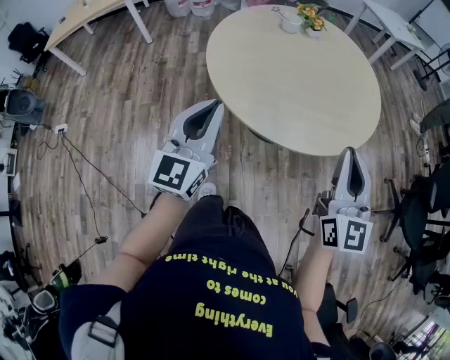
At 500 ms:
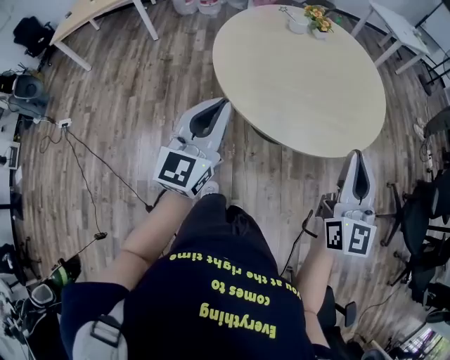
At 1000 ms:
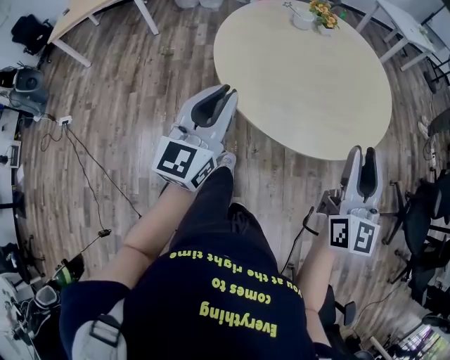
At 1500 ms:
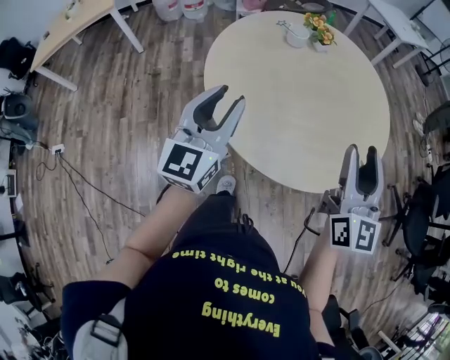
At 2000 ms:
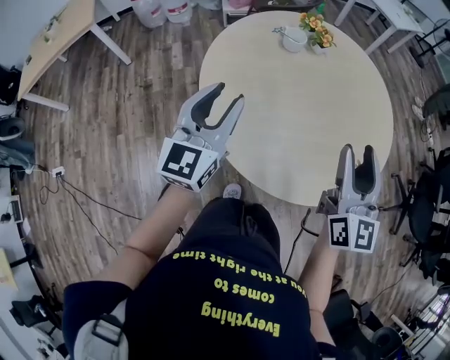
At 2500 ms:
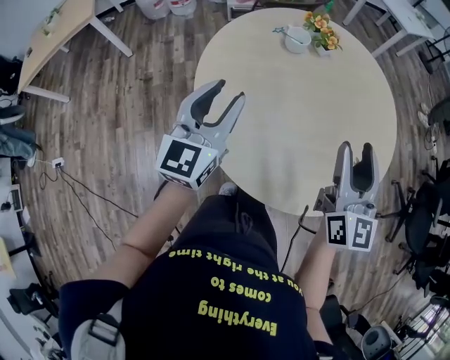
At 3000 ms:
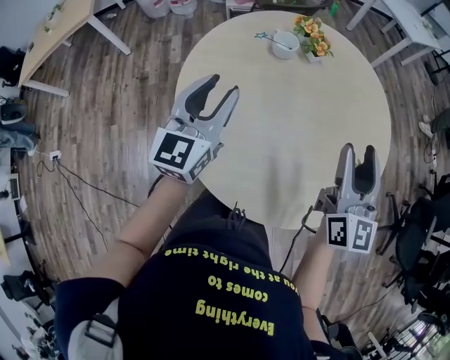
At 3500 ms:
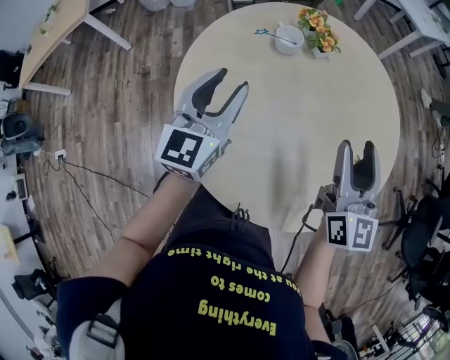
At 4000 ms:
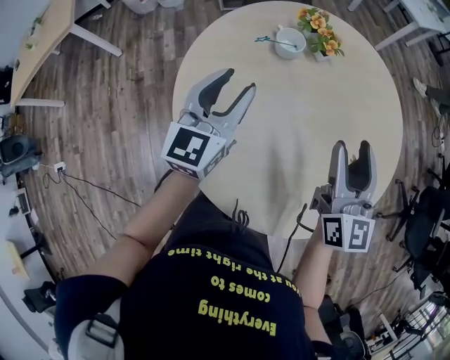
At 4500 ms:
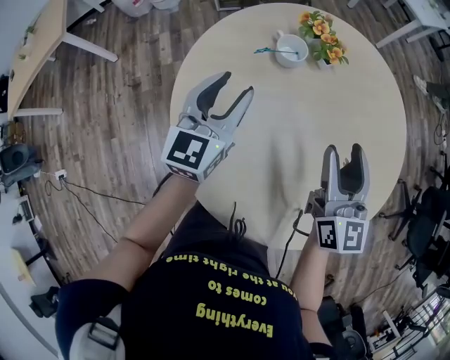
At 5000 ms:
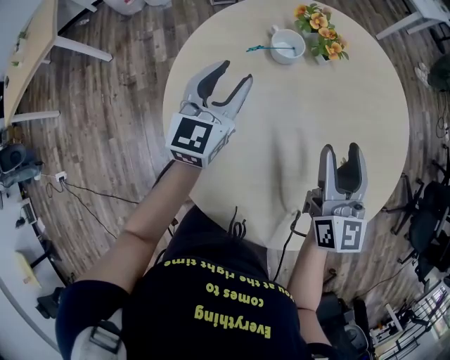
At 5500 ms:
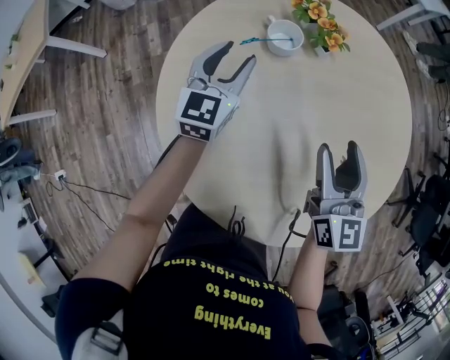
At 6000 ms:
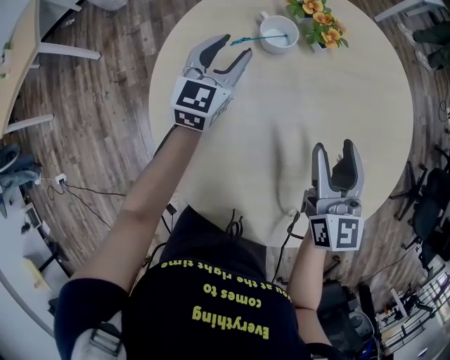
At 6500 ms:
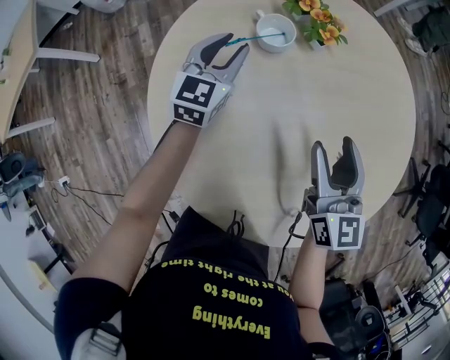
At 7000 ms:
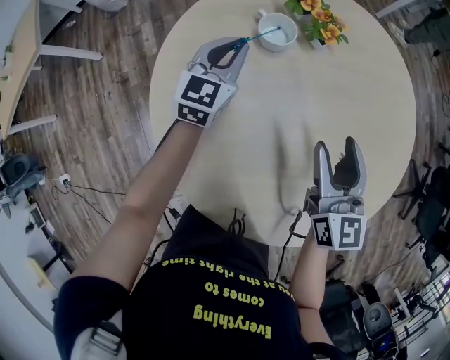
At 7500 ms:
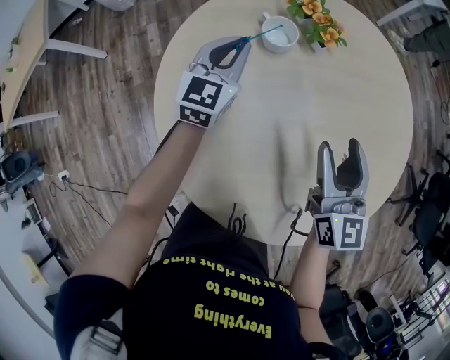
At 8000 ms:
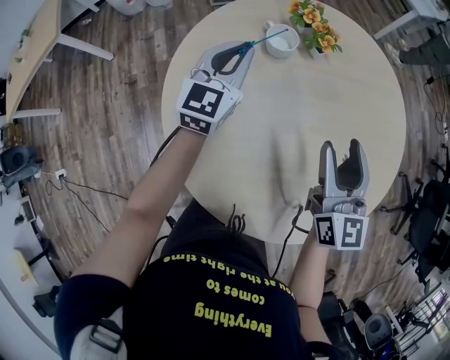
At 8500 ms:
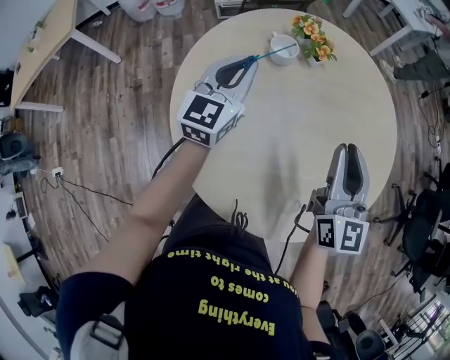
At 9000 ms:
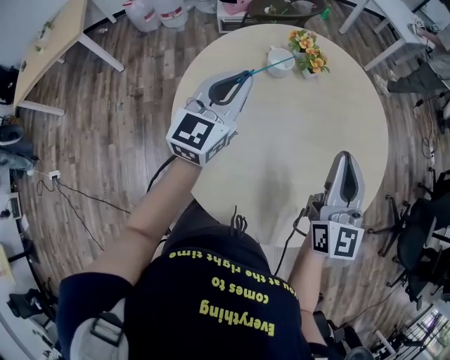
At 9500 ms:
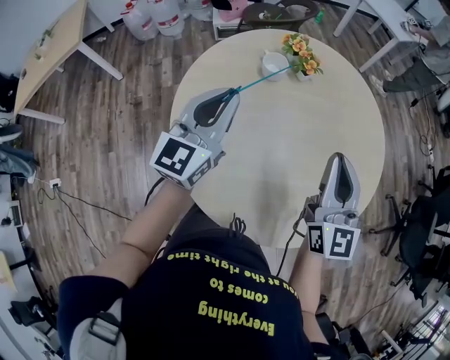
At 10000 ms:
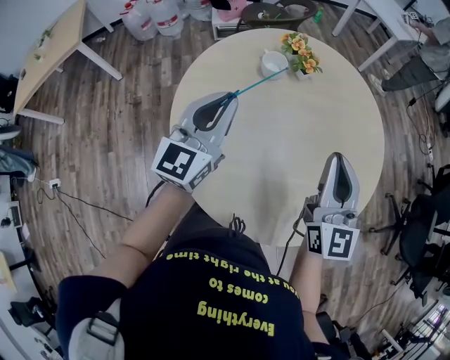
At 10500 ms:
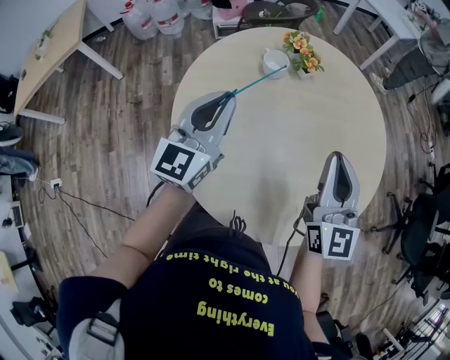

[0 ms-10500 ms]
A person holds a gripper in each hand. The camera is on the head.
0 ms to 2000 ms: Both grippers travel together forward, approximately 25 cm. The right gripper opens up. The left gripper opens.
2000 ms to 4000 ms: The grippers both shift forward by approximately 20 cm.
4000 ms to 6500 ms: The right gripper heads downward and forward, covering approximately 15 cm. The left gripper moves forward and downward, roughly 25 cm.
6500 ms to 8500 ms: Both grippers move upward and backward, about 15 cm. The right gripper closes its fingers, while the left gripper closes its fingers.
8500 ms to 10500 ms: The left gripper moves backward and upward, about 10 cm. Meanwhile the right gripper changes place by about 5 cm.

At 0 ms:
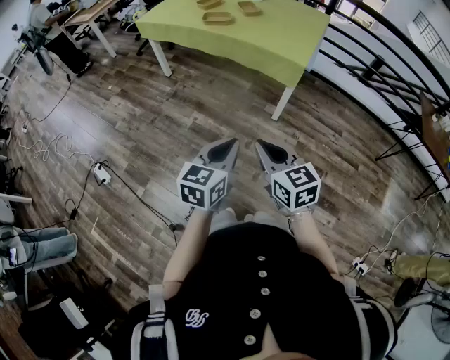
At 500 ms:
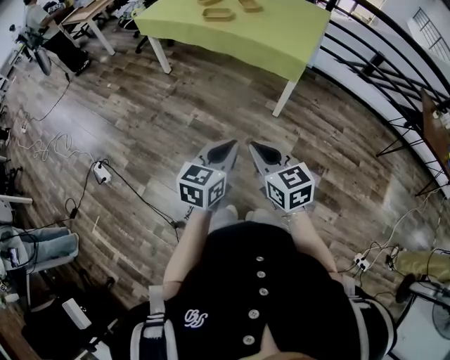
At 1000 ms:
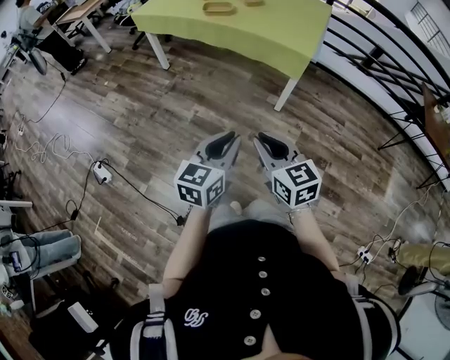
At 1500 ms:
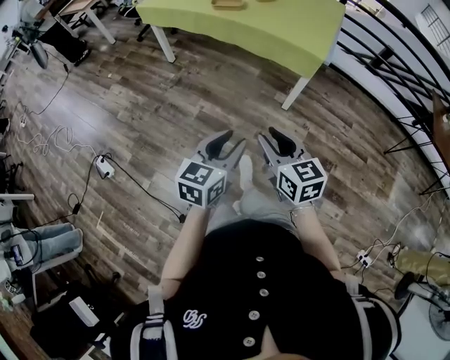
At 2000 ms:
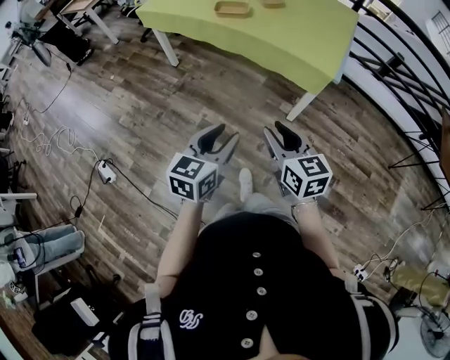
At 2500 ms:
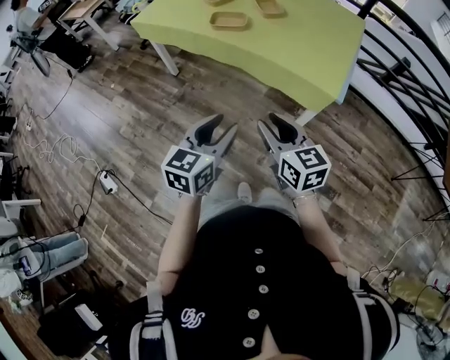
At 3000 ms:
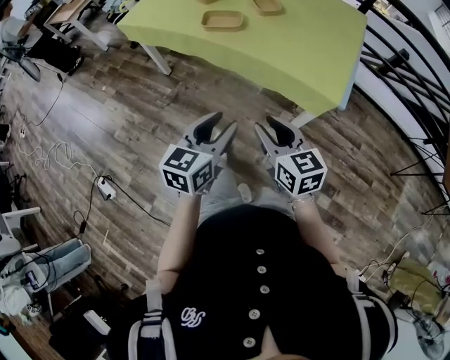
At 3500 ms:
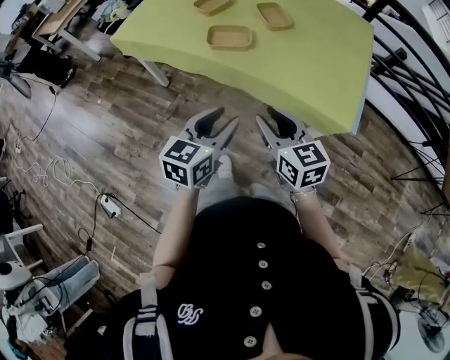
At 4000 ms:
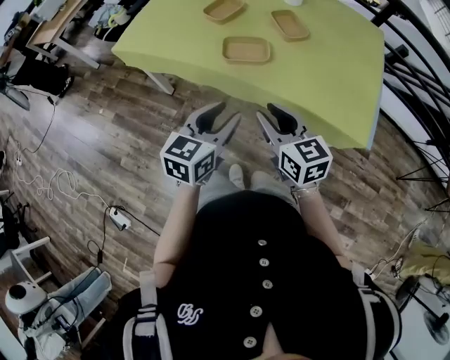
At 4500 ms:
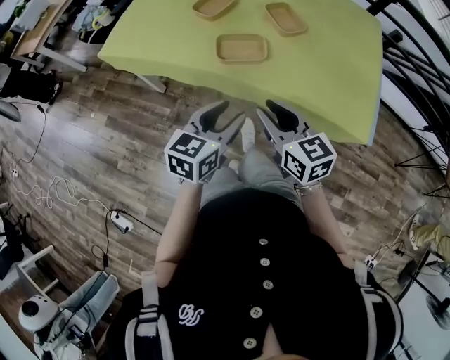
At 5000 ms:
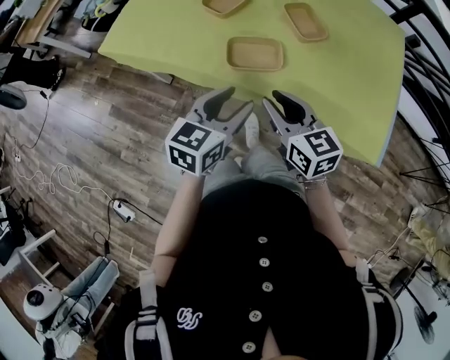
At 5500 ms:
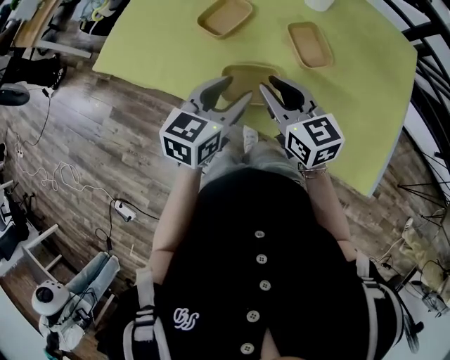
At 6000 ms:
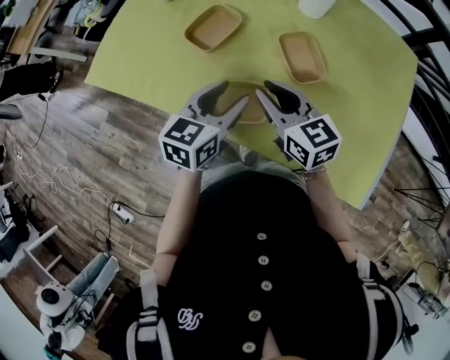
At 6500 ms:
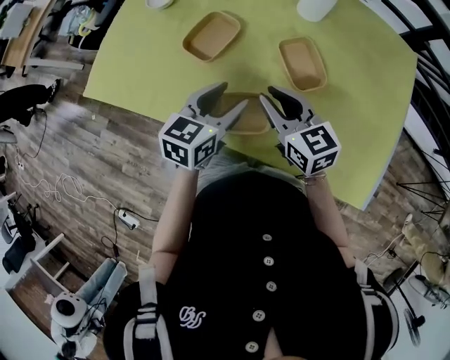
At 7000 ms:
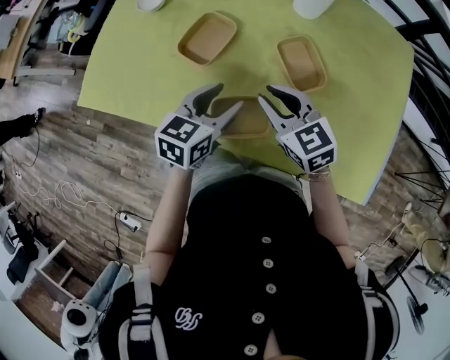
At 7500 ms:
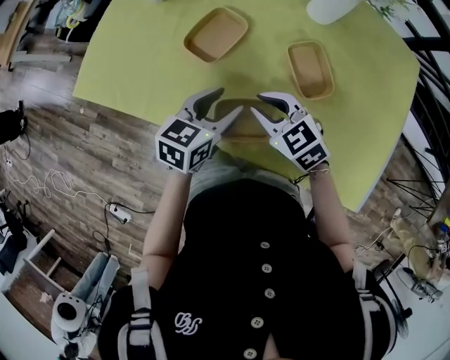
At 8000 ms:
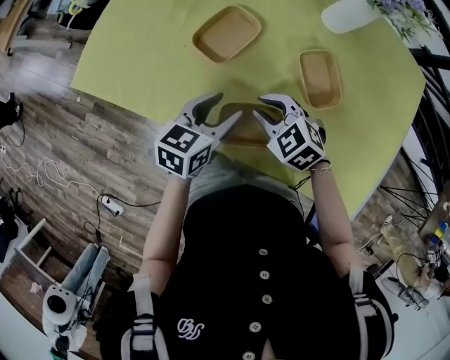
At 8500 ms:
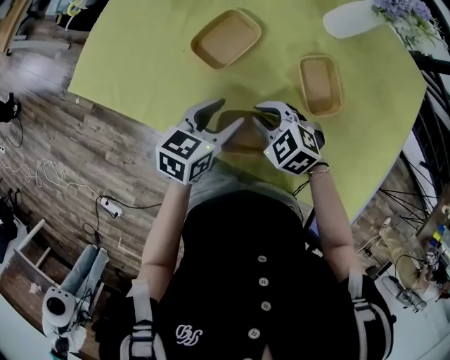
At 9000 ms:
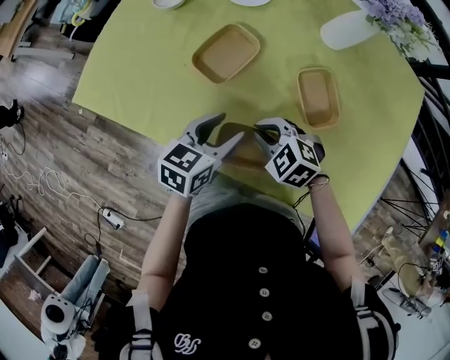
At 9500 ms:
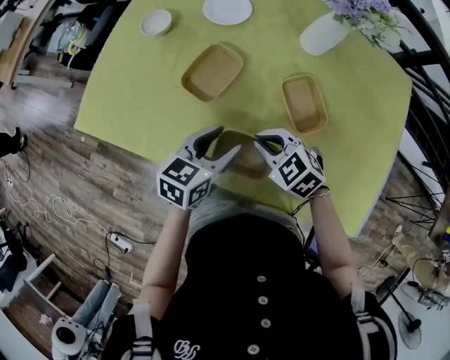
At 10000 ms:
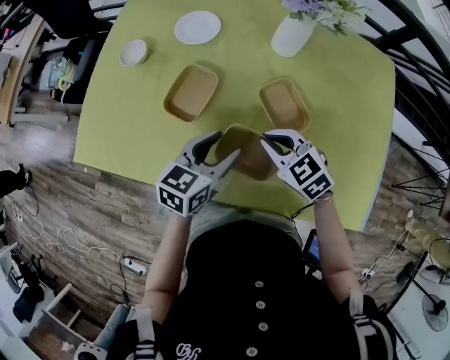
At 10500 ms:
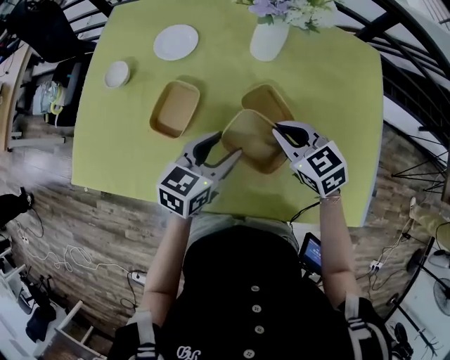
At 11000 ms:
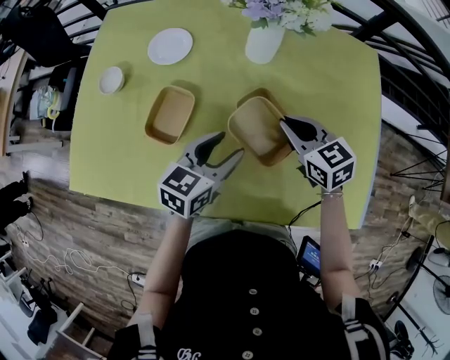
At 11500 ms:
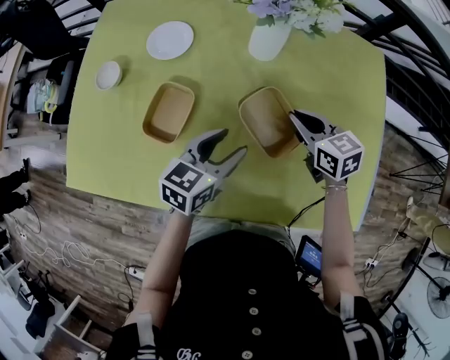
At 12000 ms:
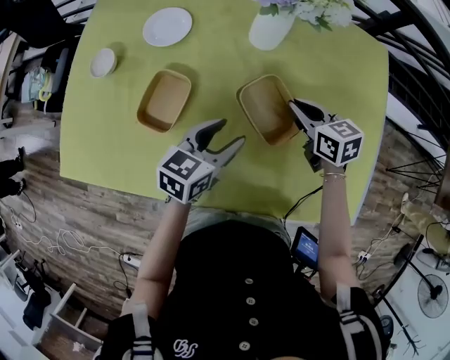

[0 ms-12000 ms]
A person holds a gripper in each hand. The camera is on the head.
0 ms to 2000 ms: The left gripper goes about 20 cm forward and to the left, and opens its fingers. Meanwhile the right gripper heads forward, covering roughly 20 cm, and opens.
2000 ms to 4000 ms: The two grippers go about 40 cm forward.
4000 ms to 6000 ms: Both grippers move forward, about 30 cm.
6000 ms to 8000 ms: The right gripper shifts approximately 10 cm downward and to the left, and points its fingers some 30 degrees further downward, while the left gripper travels downward by about 5 cm.
8000 ms to 10000 ms: The two grippers go roughly 5 cm to the right. The right gripper rotates some 20 degrees.
10000 ms to 12000 ms: The left gripper shifts roughly 10 cm to the right and forward. The right gripper goes approximately 20 cm to the right and forward, and turns by about 40 degrees.

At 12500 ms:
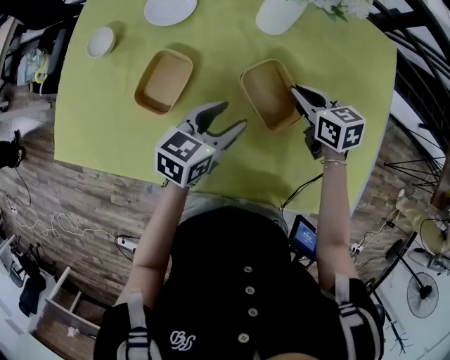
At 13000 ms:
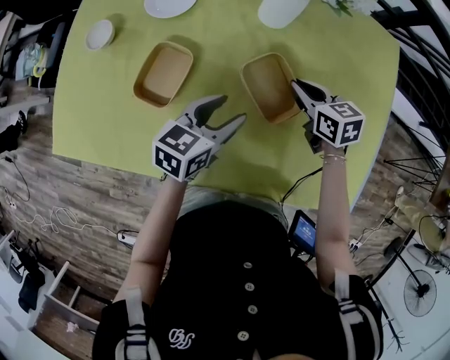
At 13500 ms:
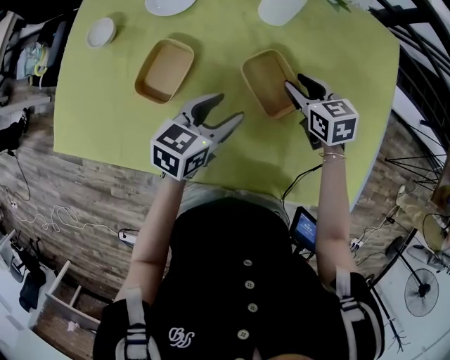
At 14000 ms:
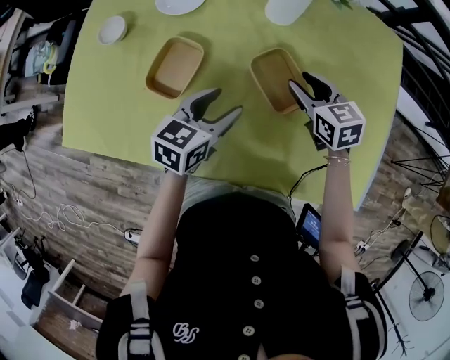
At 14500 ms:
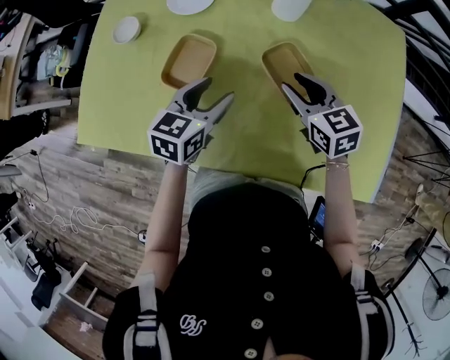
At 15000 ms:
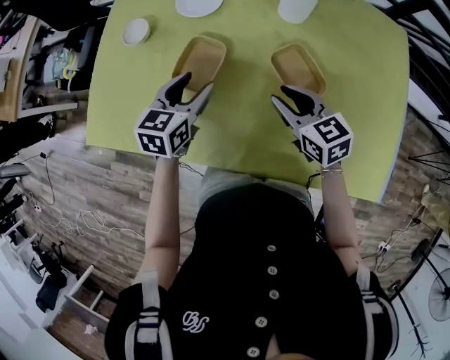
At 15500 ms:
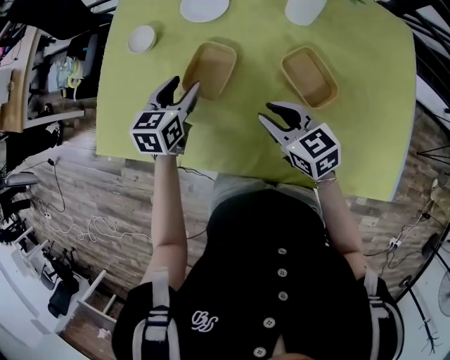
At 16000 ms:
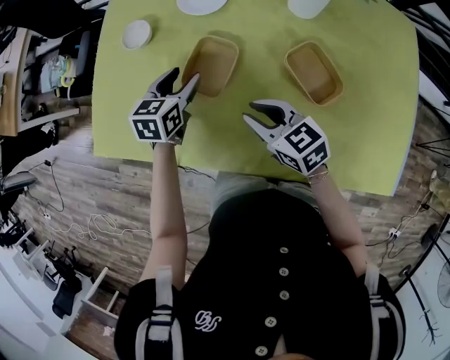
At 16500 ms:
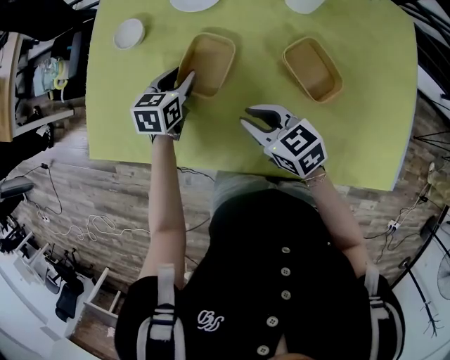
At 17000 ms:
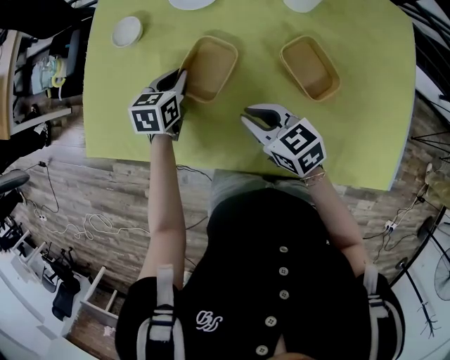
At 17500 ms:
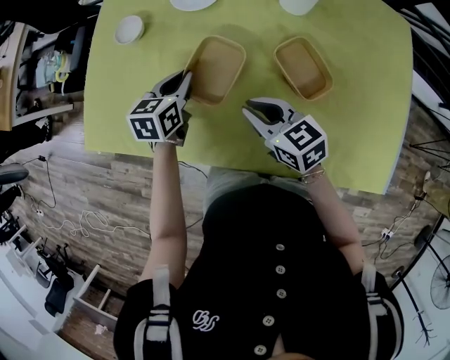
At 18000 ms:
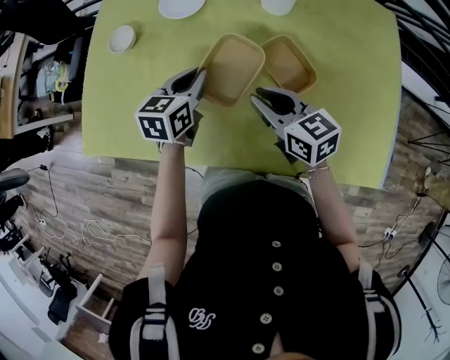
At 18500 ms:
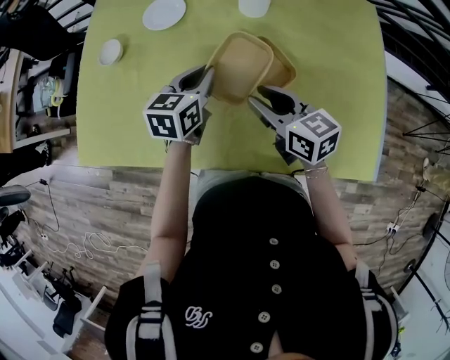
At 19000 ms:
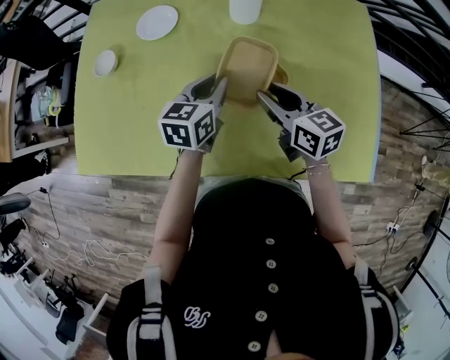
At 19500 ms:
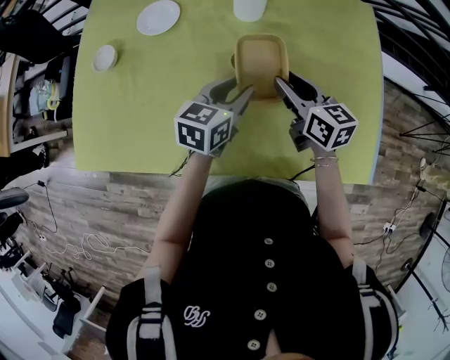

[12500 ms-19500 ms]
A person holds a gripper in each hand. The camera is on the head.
12500 ms to 14500 ms: The left gripper shifts some 10 cm to the left; the right gripper goes approximately 10 cm to the left, backward and upward, and opens its fingers.
14500 ms to 16000 ms: The right gripper is displaced to the left by about 15 cm. The left gripper shifts roughly 15 cm to the left and forward.
16000 ms to 17500 ms: The left gripper closes.
17500 ms to 19500 ms: Both grippers travel together to the right, some 20 cm. The left gripper rotates about 20 degrees, and opens, while the right gripper swivels approximately 30 degrees.
